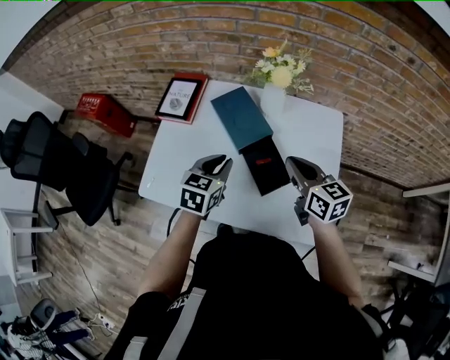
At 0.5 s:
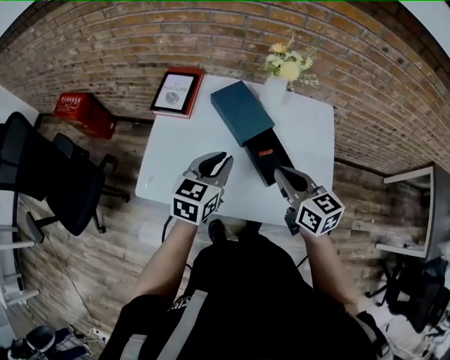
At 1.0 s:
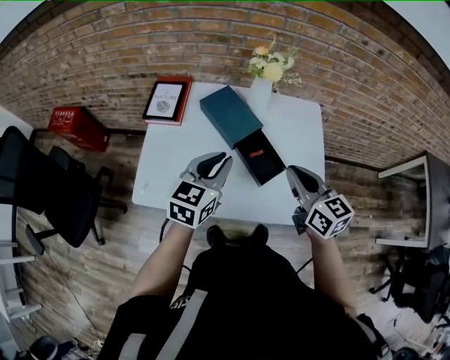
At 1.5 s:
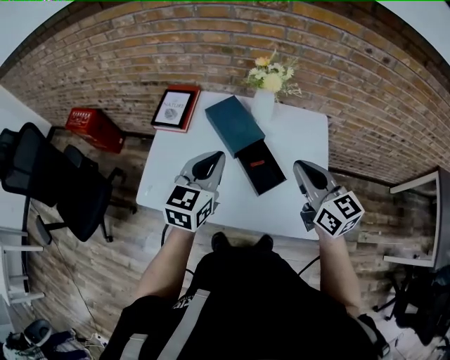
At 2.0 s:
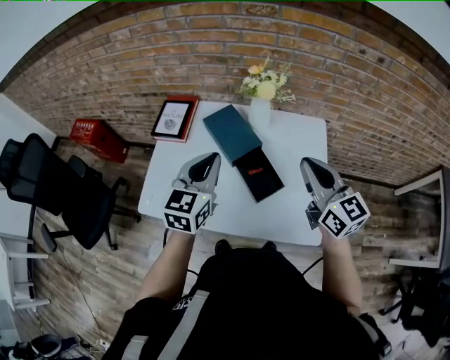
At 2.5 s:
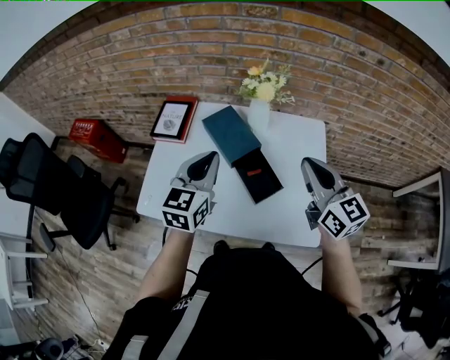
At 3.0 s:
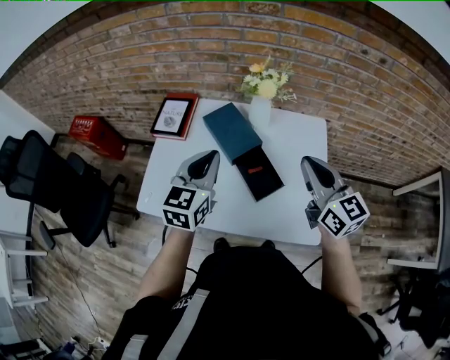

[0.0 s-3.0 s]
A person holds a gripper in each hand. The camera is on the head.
0.0 to 1.5 s: The left gripper goes some 10 cm upward, and rotates some 20 degrees. Meanwhile the right gripper shifts roughly 10 cm upward and backward.
1.5 to 3.0 s: The grippers make only small movements.

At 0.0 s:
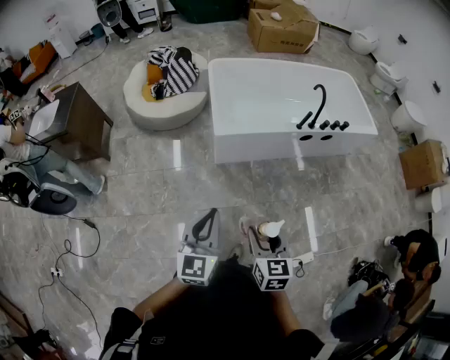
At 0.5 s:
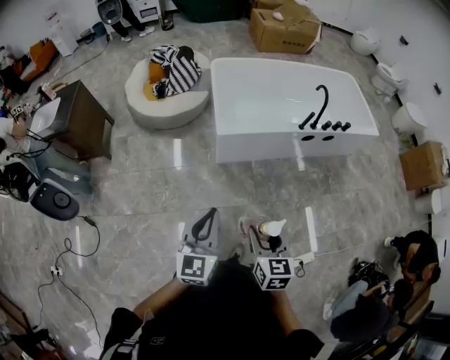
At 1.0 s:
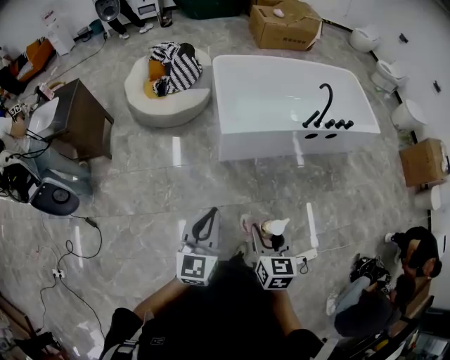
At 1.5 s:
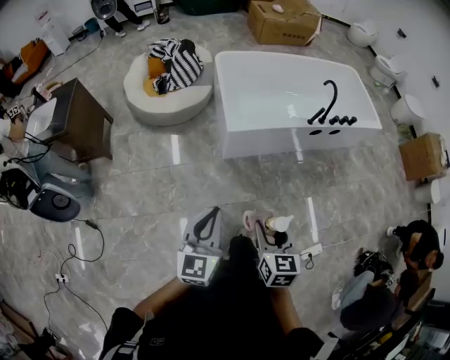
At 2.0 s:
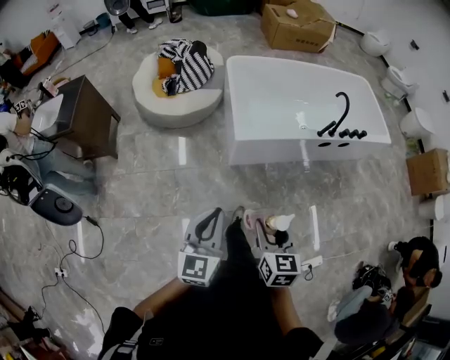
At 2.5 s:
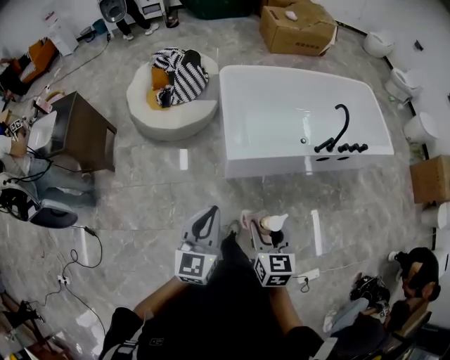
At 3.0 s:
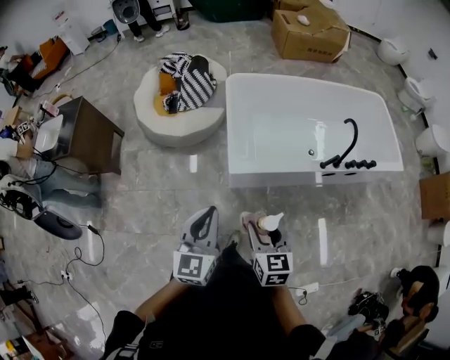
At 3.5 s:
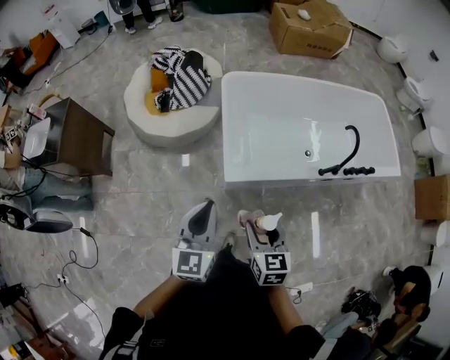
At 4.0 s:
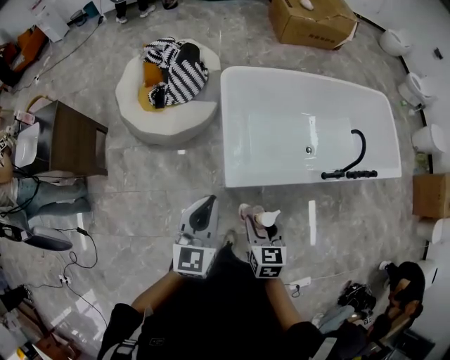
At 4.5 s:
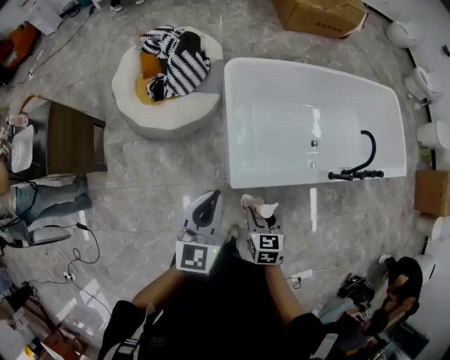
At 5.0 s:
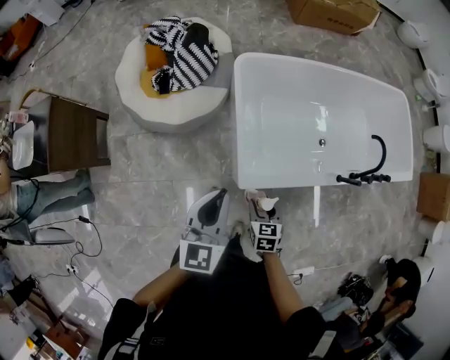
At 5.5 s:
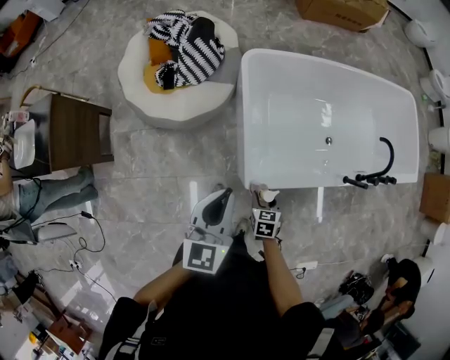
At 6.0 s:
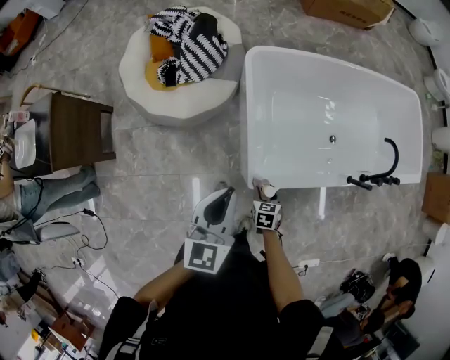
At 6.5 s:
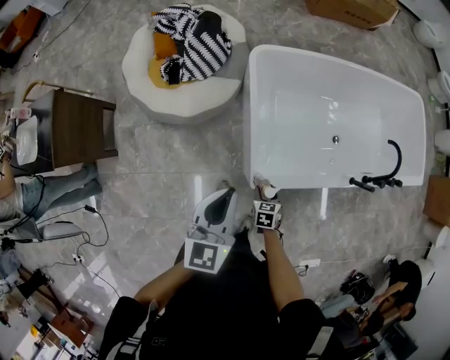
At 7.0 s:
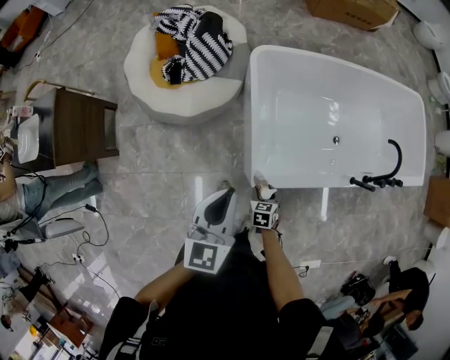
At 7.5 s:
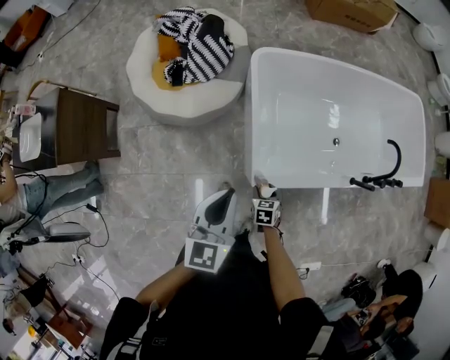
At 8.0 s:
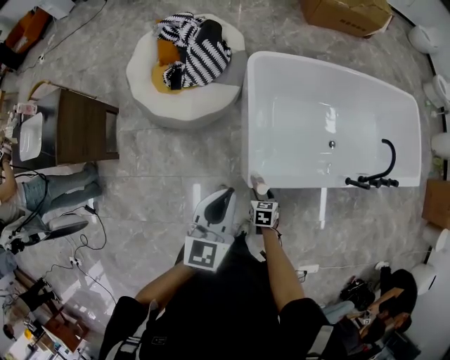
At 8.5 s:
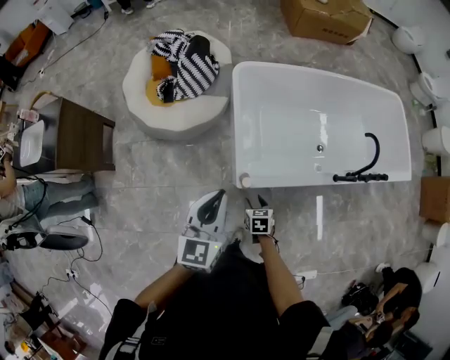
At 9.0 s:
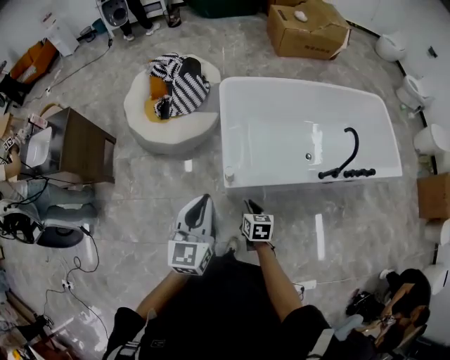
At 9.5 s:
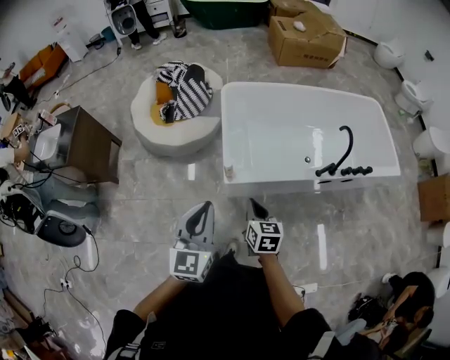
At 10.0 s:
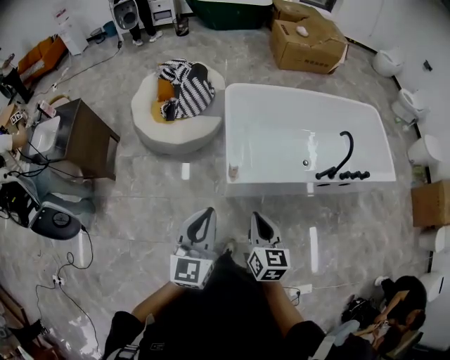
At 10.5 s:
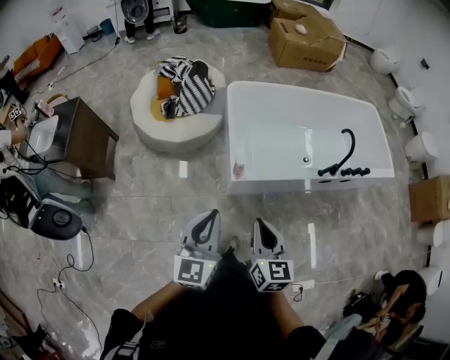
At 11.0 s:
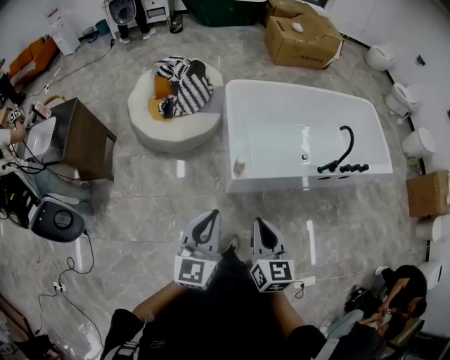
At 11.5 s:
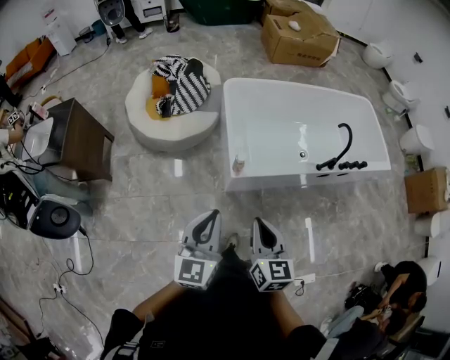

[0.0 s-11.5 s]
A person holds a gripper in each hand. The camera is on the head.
0.0 to 2.0 s: The two grippers go some 15 cm to the left and forward.
2.0 to 4.0 s: Both grippers move forward, approximately 40 cm.
4.0 to 6.0 s: The left gripper goes roughly 15 cm forward and to the left. The right gripper heads downward and forward, covering about 30 cm, and changes its angle by roughly 20 degrees.
6.0 to 7.5 s: The grippers make only small movements.
7.5 to 9.5 s: The right gripper shifts about 35 cm upward and backward, rotates roughly 30 degrees, and closes up, while the left gripper goes some 30 cm backward.
9.5 to 11.5 s: The left gripper moves to the left, some 10 cm, while the right gripper moves upward, backward and to the left, about 20 cm.

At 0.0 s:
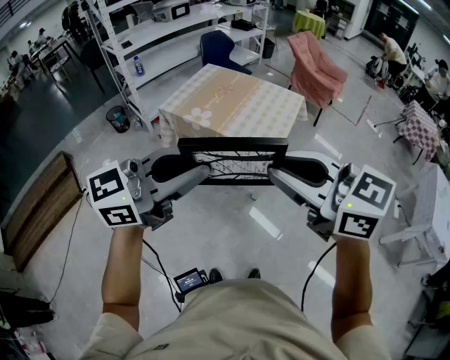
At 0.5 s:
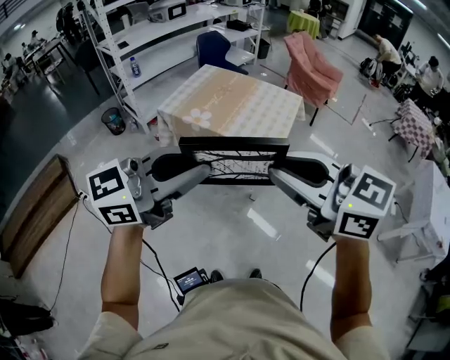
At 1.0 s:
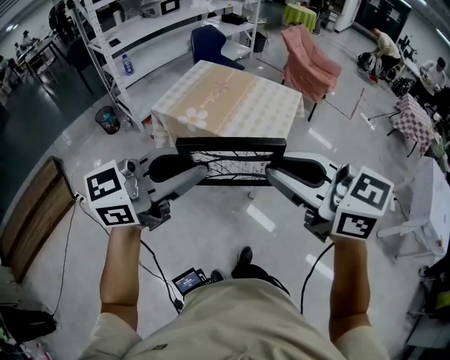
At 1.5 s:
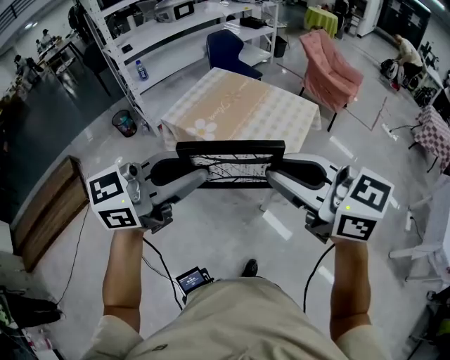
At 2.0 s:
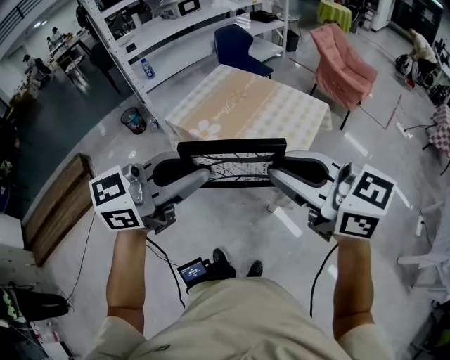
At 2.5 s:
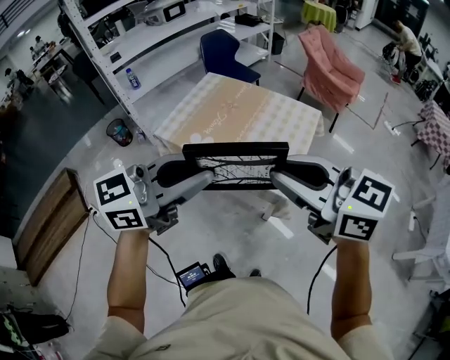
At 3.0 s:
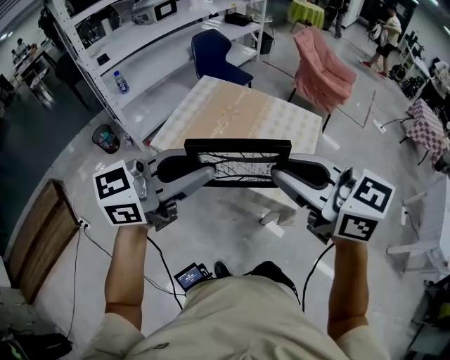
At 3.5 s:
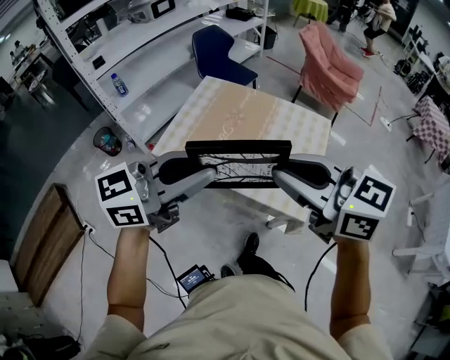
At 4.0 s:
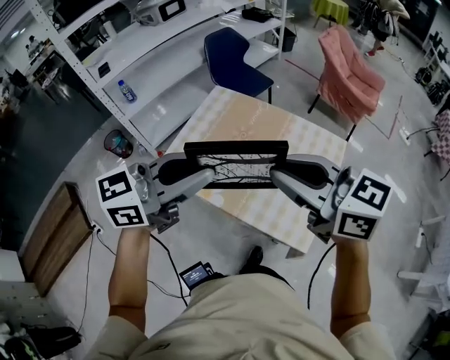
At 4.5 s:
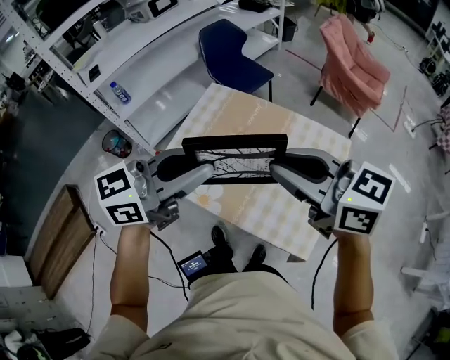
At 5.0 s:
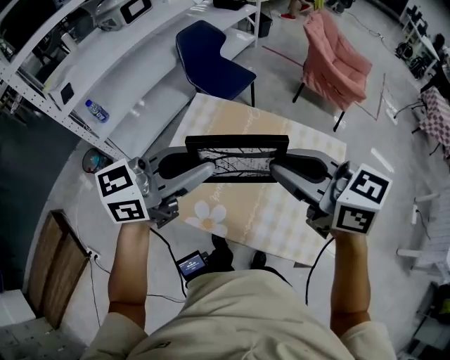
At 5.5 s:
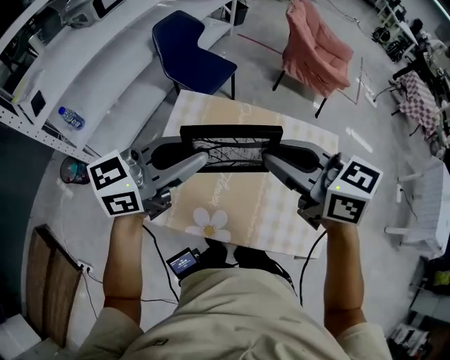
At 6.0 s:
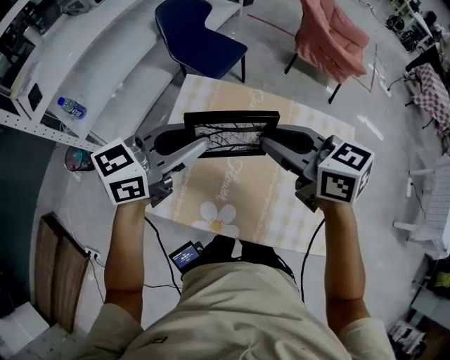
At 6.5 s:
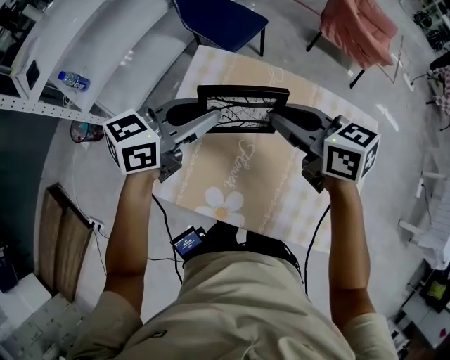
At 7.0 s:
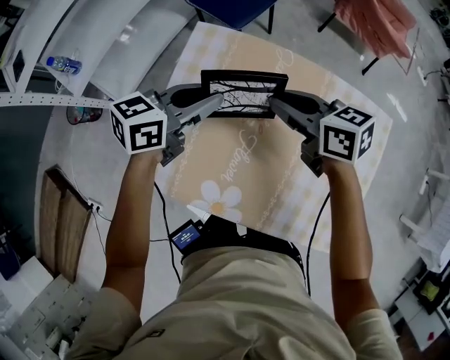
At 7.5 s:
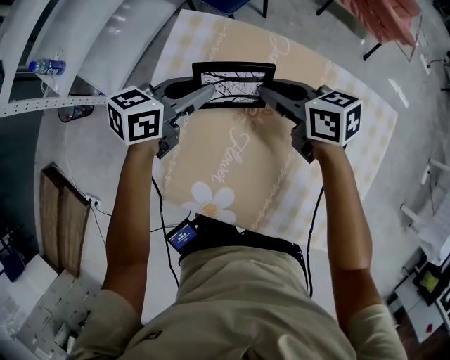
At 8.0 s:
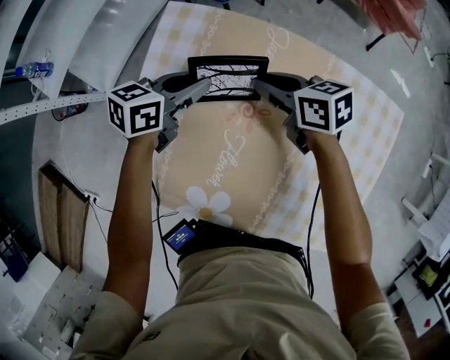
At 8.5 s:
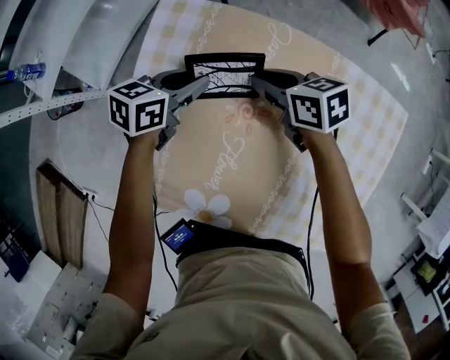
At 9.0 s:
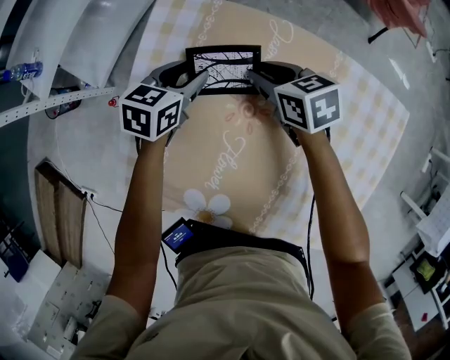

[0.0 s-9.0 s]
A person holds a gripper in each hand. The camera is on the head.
0.0 to 2.0 s: Both grippers move forward, about 20 cm.
2.0 to 4.5 s: Both grippers are carried forward, roughly 40 cm.
4.5 to 7.0 s: The grippers both shift forward and downward by about 50 cm. The right gripper rotates some 30 degrees. Meanwhile the left gripper rotates about 20 degrees.
7.0 to 9.0 s: The two grippers go roughly 20 cm downward. The left gripper changes its angle by roughly 30 degrees, and opens up.

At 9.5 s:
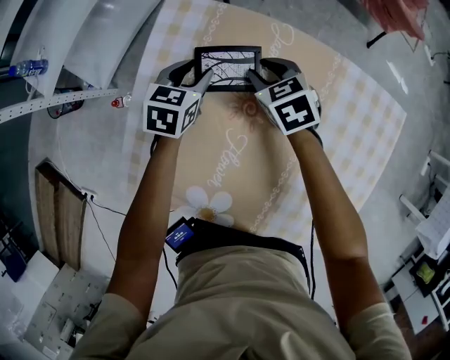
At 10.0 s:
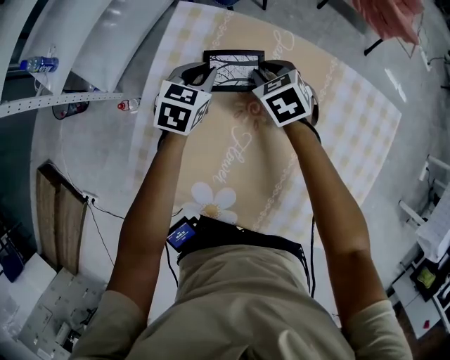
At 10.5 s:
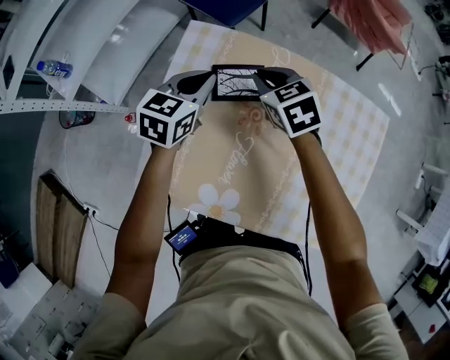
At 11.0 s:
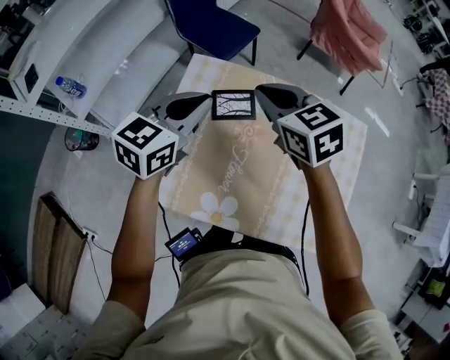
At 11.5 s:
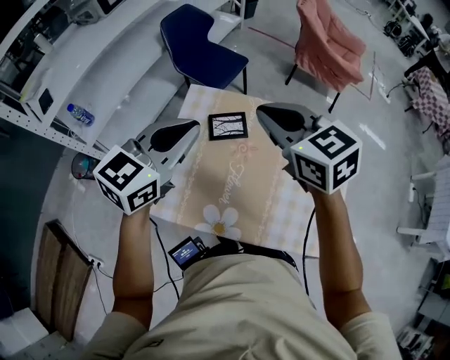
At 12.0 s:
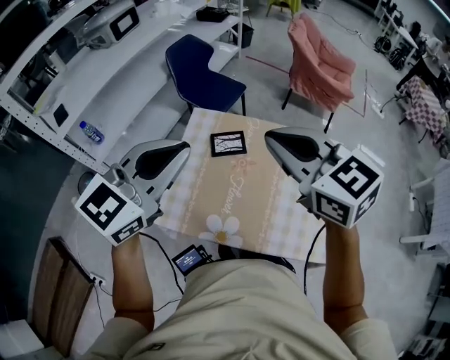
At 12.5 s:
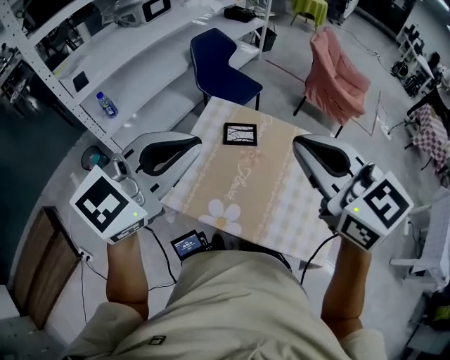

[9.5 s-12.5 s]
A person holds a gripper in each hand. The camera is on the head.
9.5 to 11.0 s: The grippers both shift upward by roughly 30 cm. The left gripper changes its angle by about 30 degrees, and closes up. Meanwhile the right gripper changes its angle by about 20 degrees, and closes up.
11.0 to 12.5 s: Both grippers travel together backward and upward, some 35 cm. The right gripper changes its angle by about 20 degrees; the left gripper turns by approximately 30 degrees.
